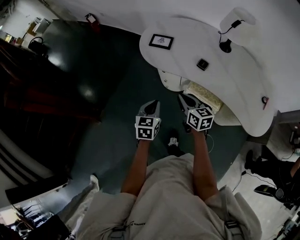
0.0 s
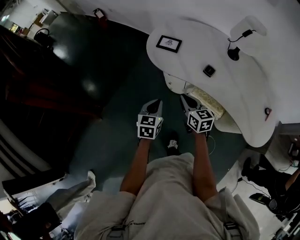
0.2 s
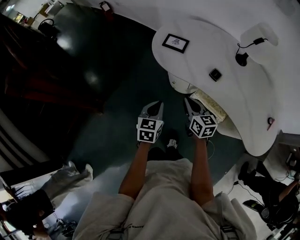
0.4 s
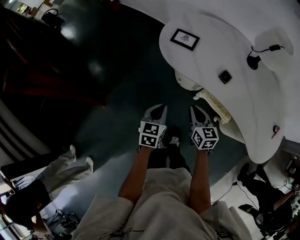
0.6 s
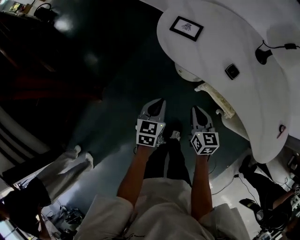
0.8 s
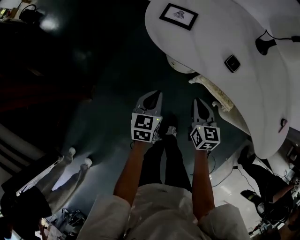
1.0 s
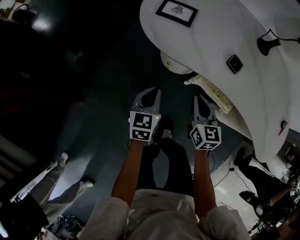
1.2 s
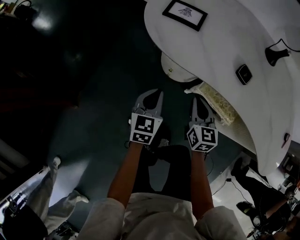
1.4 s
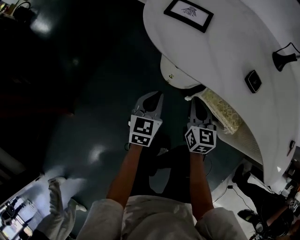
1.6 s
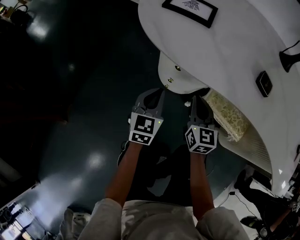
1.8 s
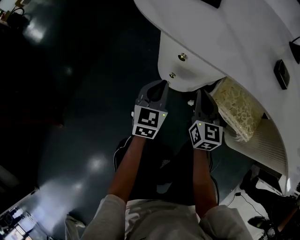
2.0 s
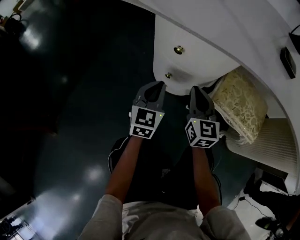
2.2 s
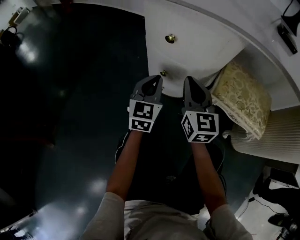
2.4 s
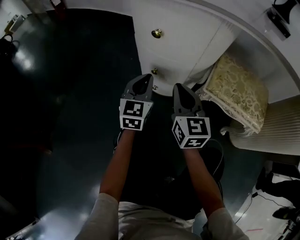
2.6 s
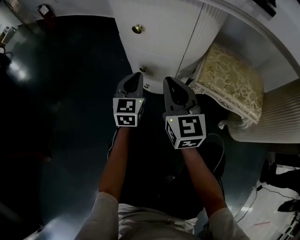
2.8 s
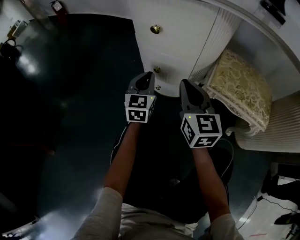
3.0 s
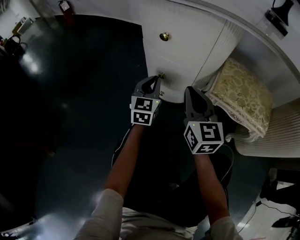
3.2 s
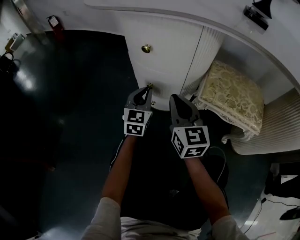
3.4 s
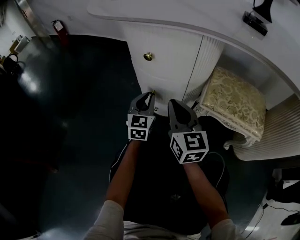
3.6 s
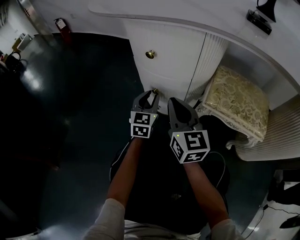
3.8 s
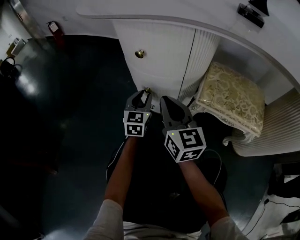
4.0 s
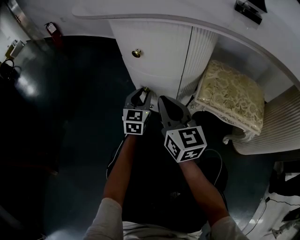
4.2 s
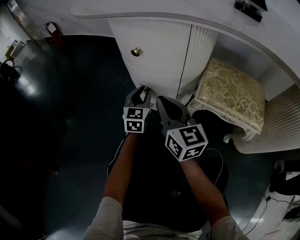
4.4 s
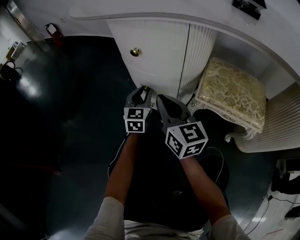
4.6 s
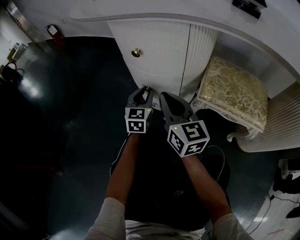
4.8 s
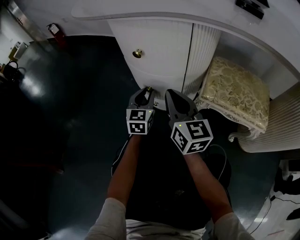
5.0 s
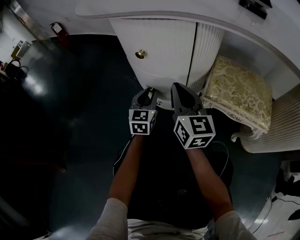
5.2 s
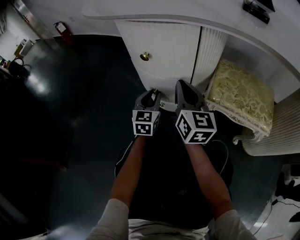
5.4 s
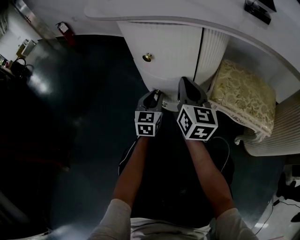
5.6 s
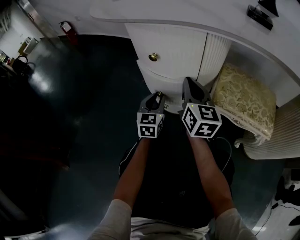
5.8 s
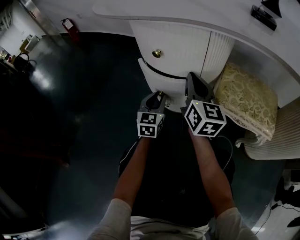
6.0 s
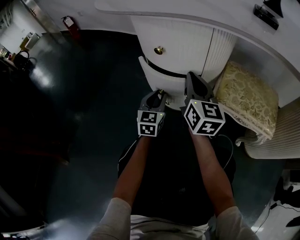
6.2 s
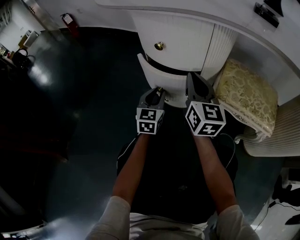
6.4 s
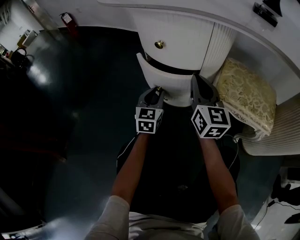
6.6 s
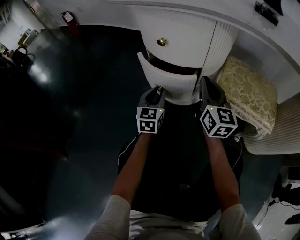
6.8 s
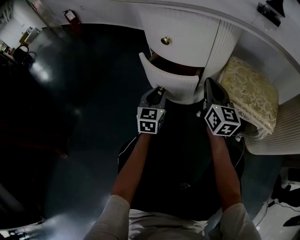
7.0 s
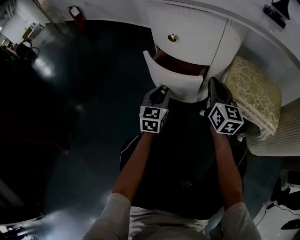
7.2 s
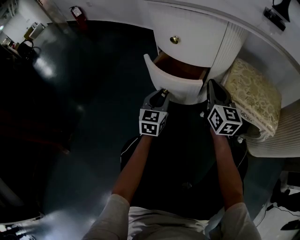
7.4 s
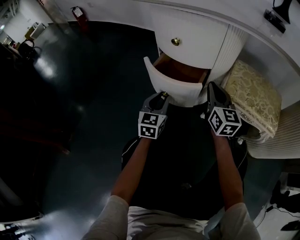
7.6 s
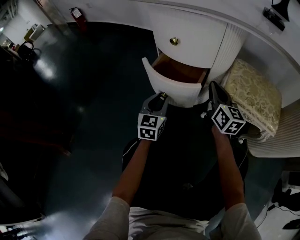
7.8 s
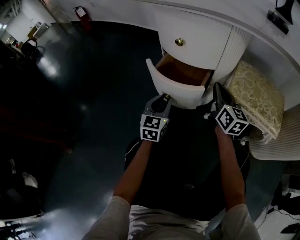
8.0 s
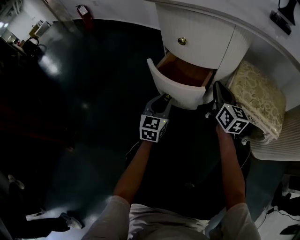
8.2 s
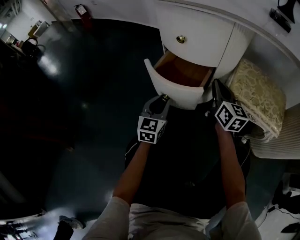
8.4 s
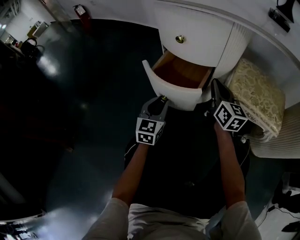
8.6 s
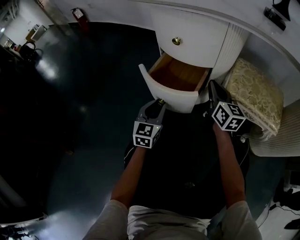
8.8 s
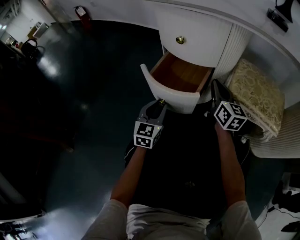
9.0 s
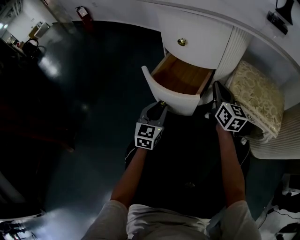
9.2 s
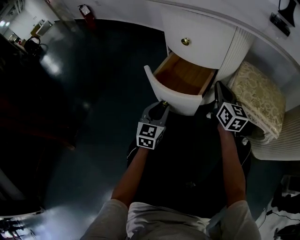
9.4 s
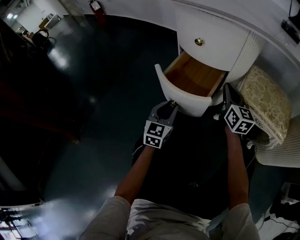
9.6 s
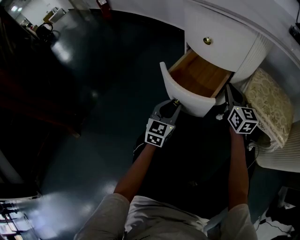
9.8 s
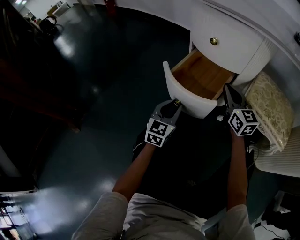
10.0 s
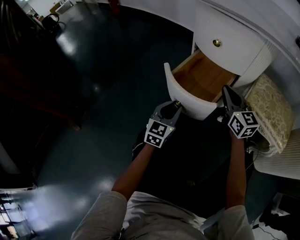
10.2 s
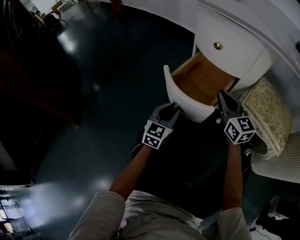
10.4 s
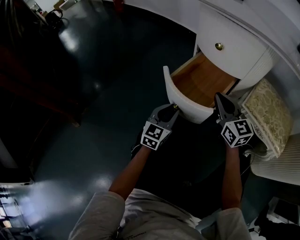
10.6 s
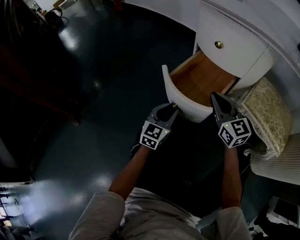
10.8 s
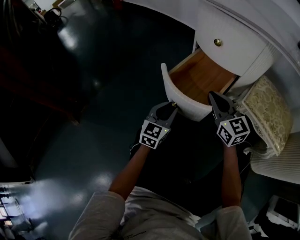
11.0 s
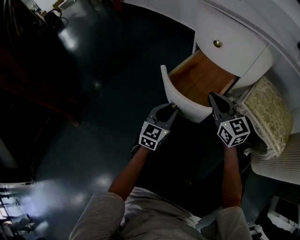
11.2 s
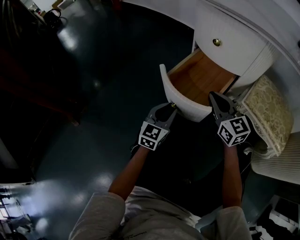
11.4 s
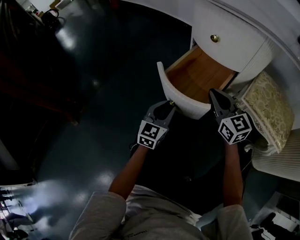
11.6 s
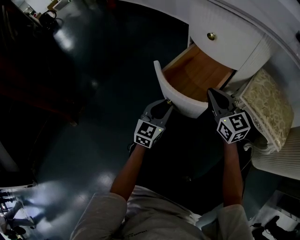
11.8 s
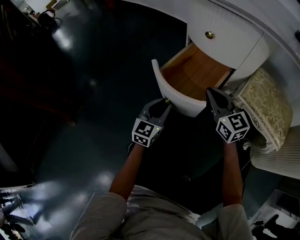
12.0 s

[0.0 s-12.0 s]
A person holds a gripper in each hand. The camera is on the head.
0.0 to 1.6 s: The two grippers go some 35 cm downward and forward. The right gripper rotates approximately 20 degrees.
1.6 to 3.0 s: The right gripper moves downward, about 20 cm, while the left gripper travels downward and forward by some 30 cm.
3.0 to 4.4 s: The left gripper opens.
4.4 to 6.0 s: The right gripper moves forward, roughly 5 cm.
6.0 to 7.6 s: The right gripper travels downward by about 5 cm; the left gripper is displaced backward by about 5 cm.
7.6 to 9.0 s: The left gripper moves about 5 cm.
9.0 to 10.4 s: The right gripper heads to the left, covering roughly 10 cm, and turns by approximately 30 degrees. Meanwhile the left gripper ends up some 5 cm from where it was.
10.4 to 12.0 s: The grippers move only a little.

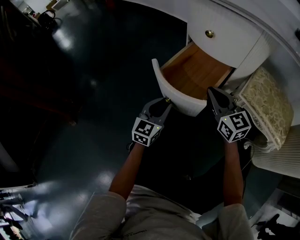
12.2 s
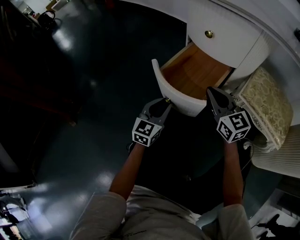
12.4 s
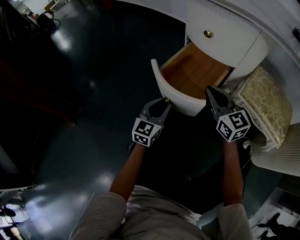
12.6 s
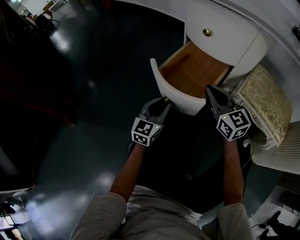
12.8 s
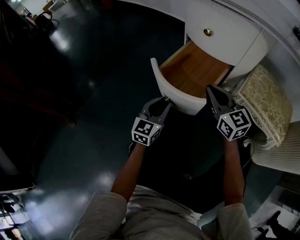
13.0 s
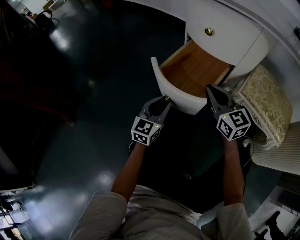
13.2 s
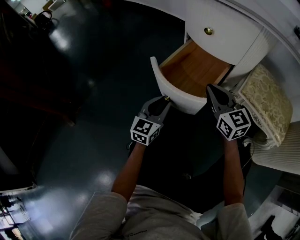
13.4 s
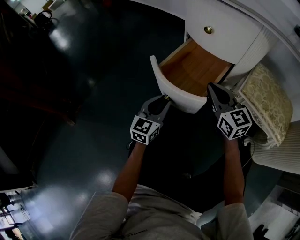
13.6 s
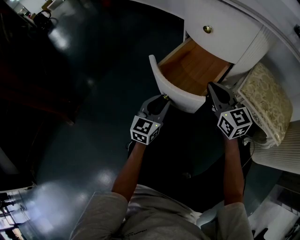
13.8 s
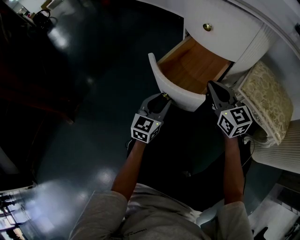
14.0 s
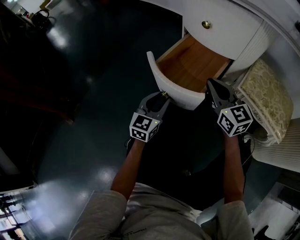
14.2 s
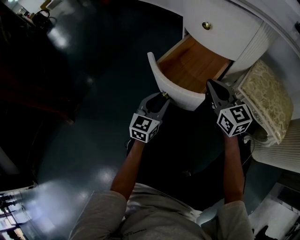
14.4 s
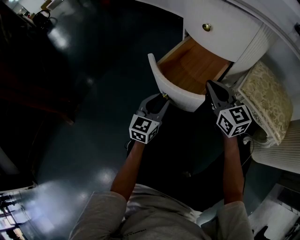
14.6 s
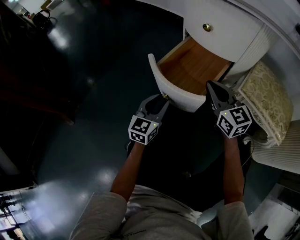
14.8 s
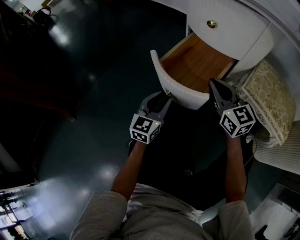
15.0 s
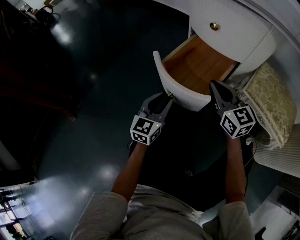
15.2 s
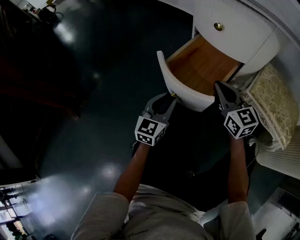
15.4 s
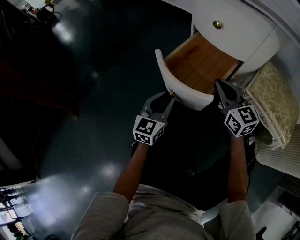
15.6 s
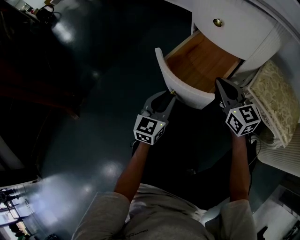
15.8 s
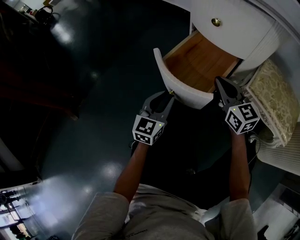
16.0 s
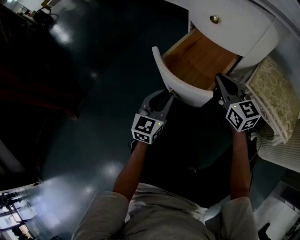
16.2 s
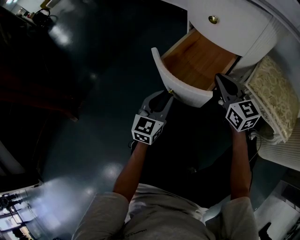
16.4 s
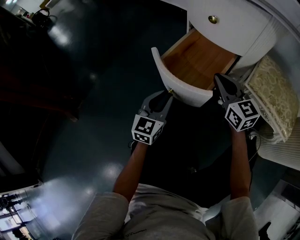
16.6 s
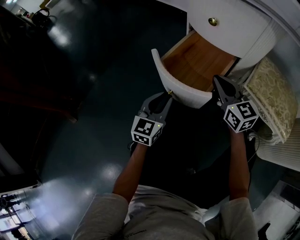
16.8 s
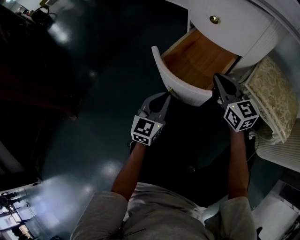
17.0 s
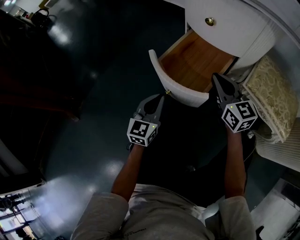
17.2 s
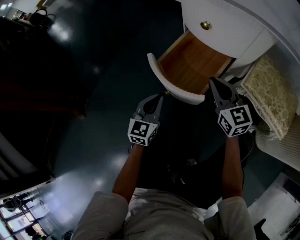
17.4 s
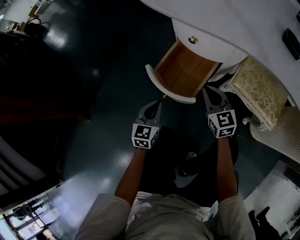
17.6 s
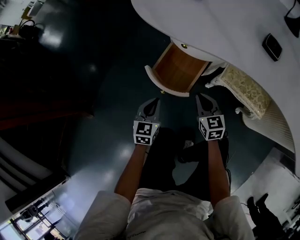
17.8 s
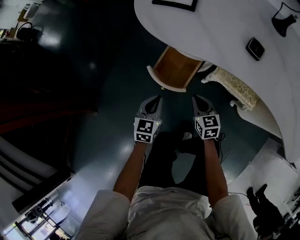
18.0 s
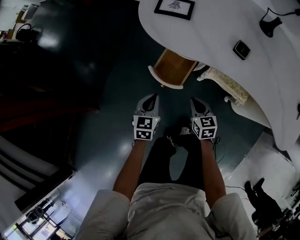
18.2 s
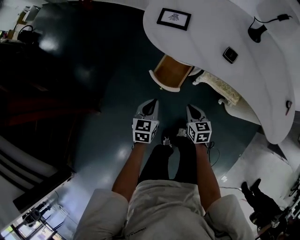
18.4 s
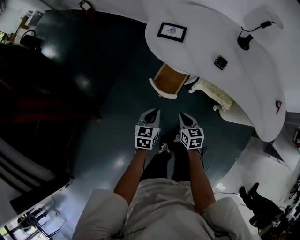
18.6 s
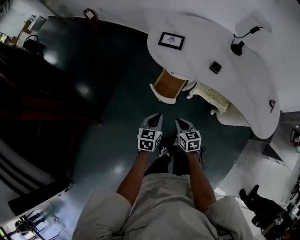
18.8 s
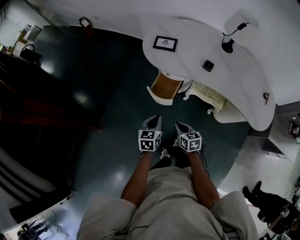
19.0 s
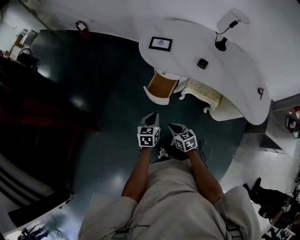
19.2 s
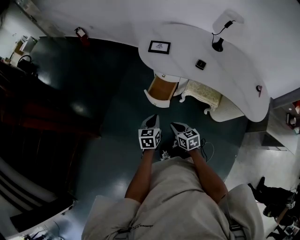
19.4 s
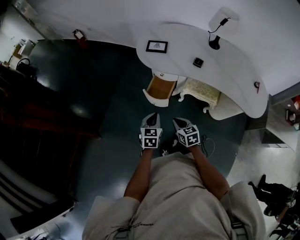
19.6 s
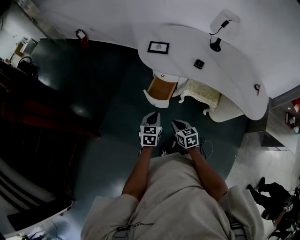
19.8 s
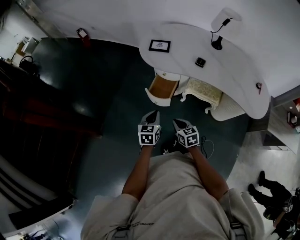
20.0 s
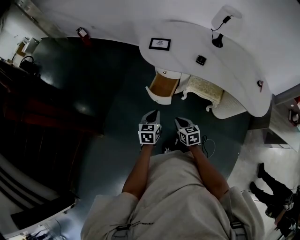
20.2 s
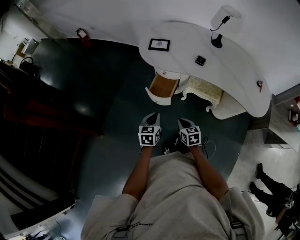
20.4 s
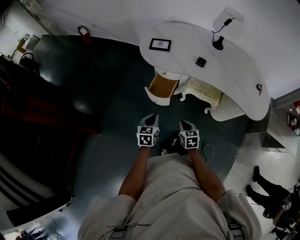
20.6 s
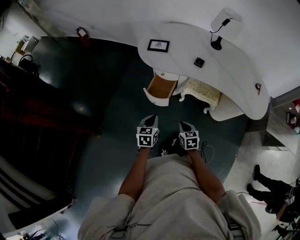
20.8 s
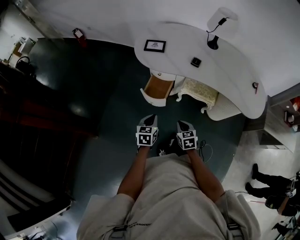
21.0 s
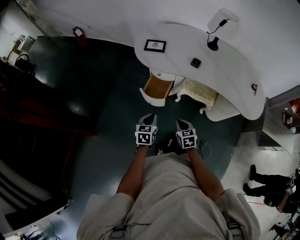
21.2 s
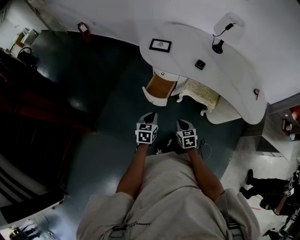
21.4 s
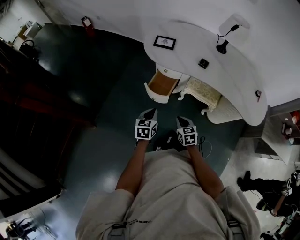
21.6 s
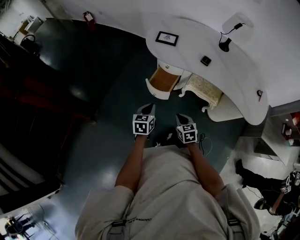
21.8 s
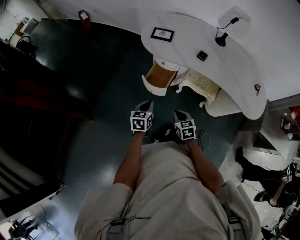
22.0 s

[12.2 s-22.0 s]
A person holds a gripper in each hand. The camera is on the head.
12.2 to 15.0 s: Both grippers stay put.
15.0 to 16.4 s: The grippers stay close to where they were, moving slightly.
16.4 to 17.8 s: The left gripper goes about 15 cm upward, and closes, while the right gripper goes roughly 10 cm backward and upward, and swivels some 20 degrees.
17.8 to 19.2 s: Both grippers travel together upward and backward, some 40 cm.
19.2 to 20.6 s: The right gripper goes approximately 5 cm to the right, and rotates about 20 degrees.
20.6 to 22.0 s: The grippers move only a little.

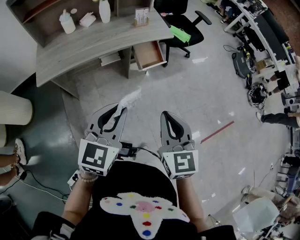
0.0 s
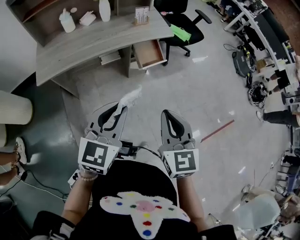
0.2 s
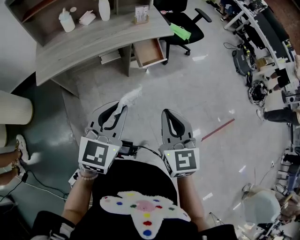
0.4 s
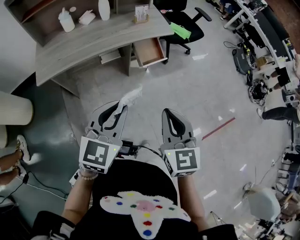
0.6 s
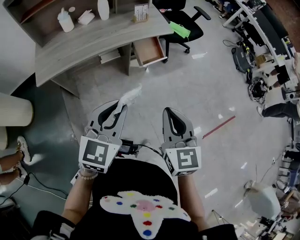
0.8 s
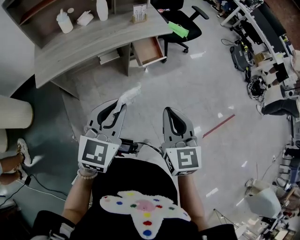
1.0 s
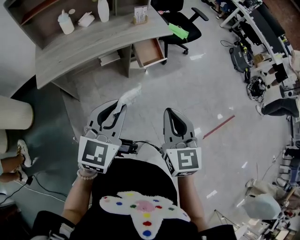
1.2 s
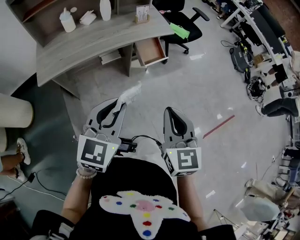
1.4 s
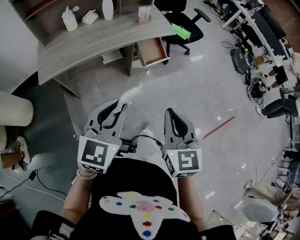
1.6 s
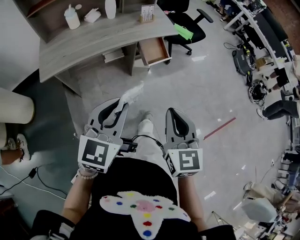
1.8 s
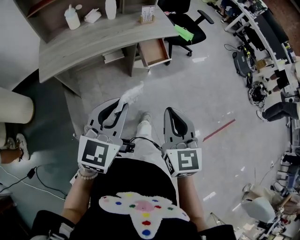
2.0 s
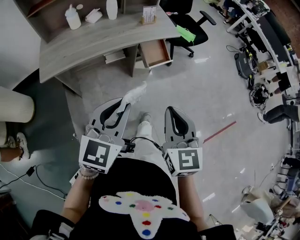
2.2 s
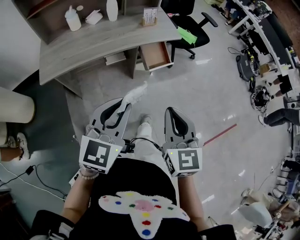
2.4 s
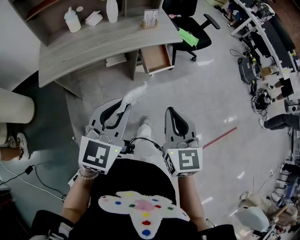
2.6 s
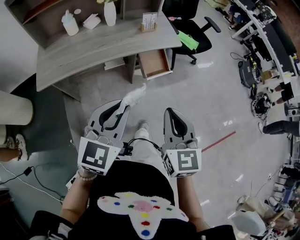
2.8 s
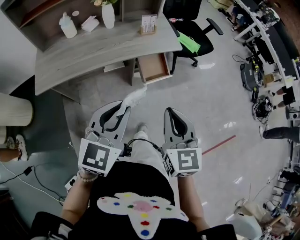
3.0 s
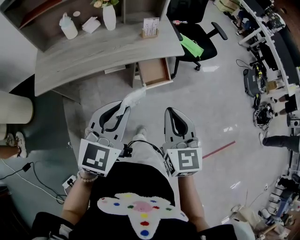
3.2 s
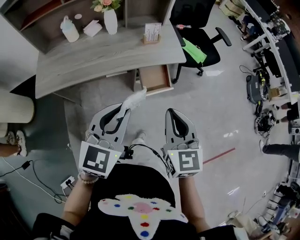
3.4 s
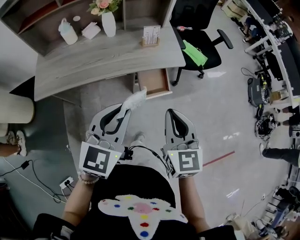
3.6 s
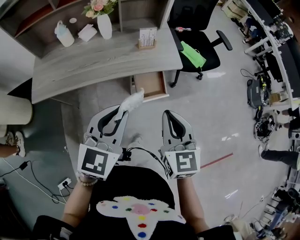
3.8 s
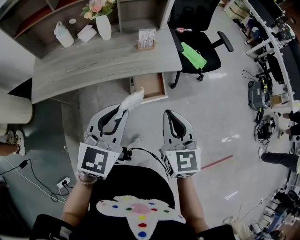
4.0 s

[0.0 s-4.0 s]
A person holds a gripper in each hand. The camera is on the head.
0.0 to 1.4 s: The grippers make only small movements.
1.4 to 2.6 s: The two grippers go some 5 cm forward.
2.6 to 4.0 s: The two grippers go roughly 20 cm forward.
